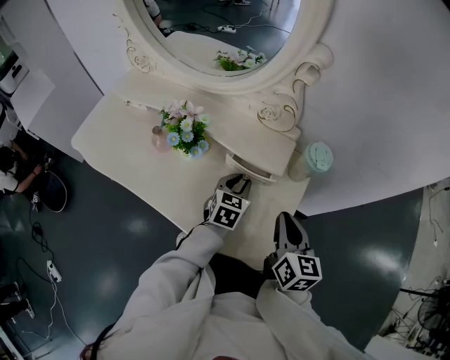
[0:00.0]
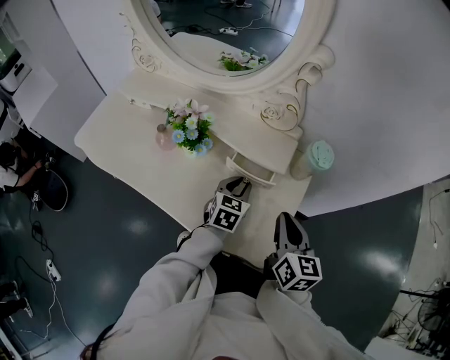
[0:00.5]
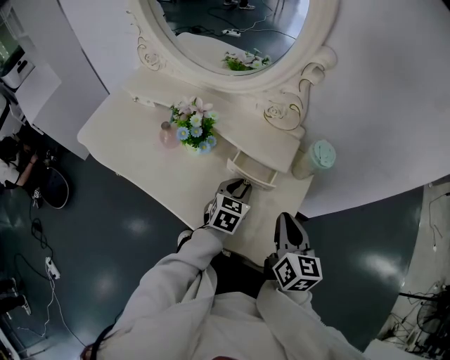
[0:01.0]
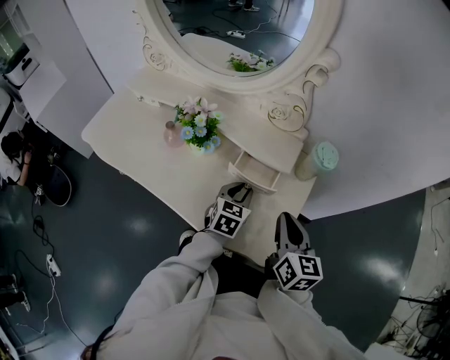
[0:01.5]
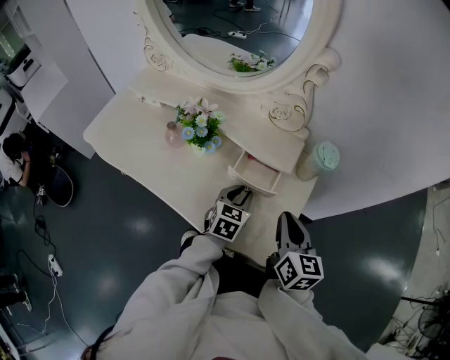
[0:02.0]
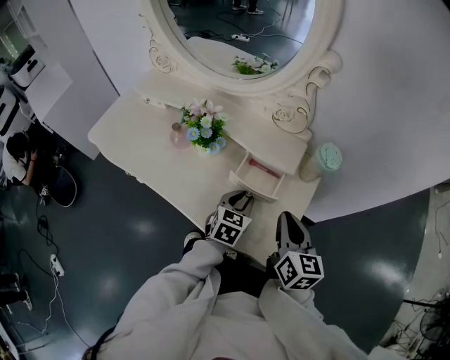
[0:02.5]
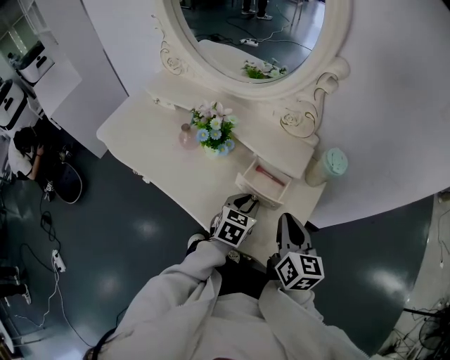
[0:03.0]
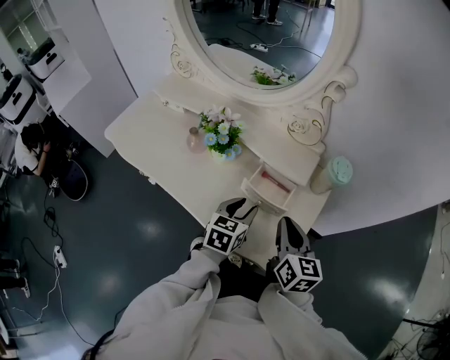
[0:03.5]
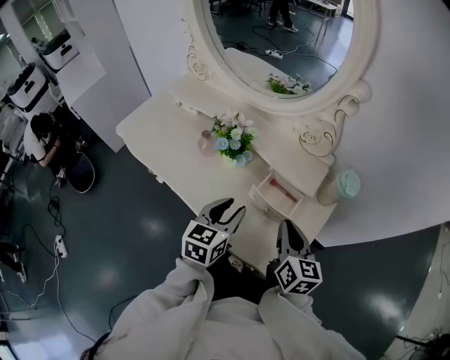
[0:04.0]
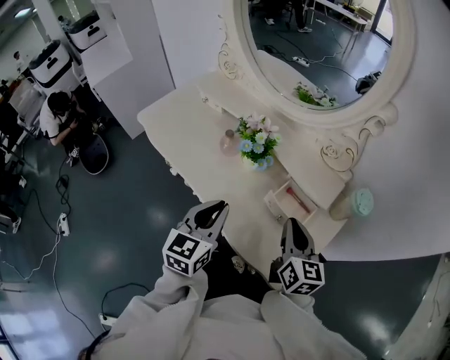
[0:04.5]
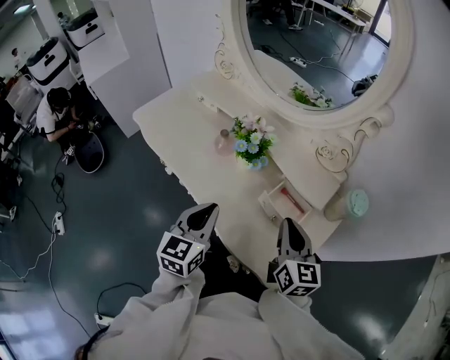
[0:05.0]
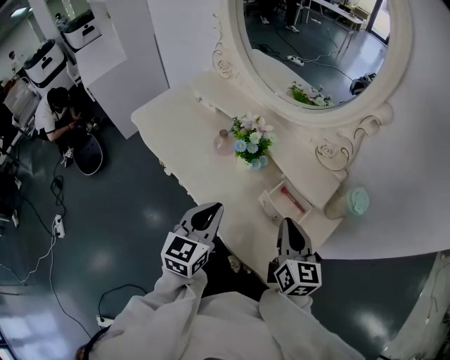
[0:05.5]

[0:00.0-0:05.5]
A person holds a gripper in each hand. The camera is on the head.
0:00.0 to 0:02.0: The left gripper goes some 5 cm backward.
0:02.0 to 0:03.5: The left gripper shifts by about 5 cm.
0:03.5 to 0:05.5: The right gripper travels to the left by approximately 5 cm; the left gripper goes approximately 15 cm to the left and upward, turns by some 30 degrees, and closes.

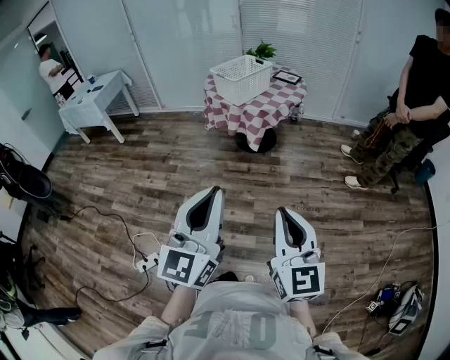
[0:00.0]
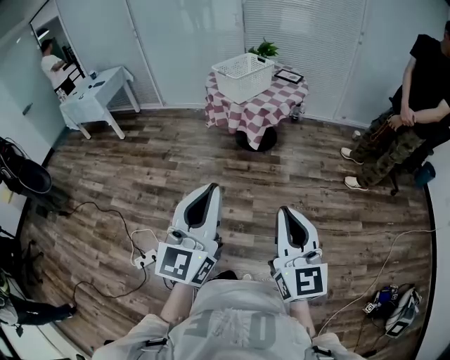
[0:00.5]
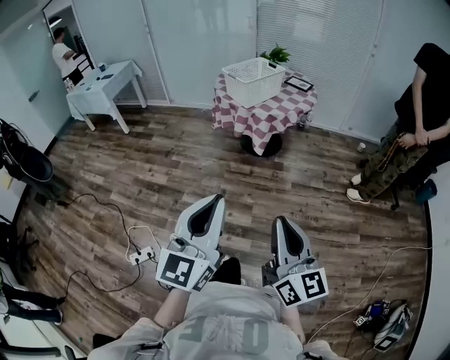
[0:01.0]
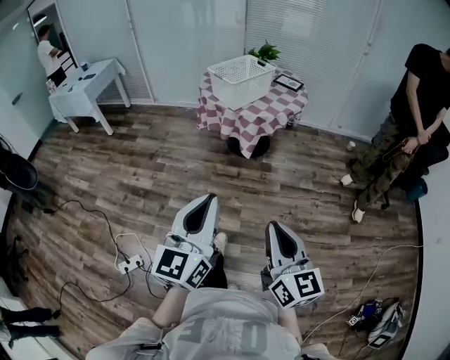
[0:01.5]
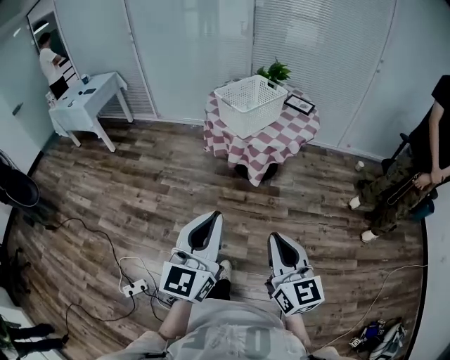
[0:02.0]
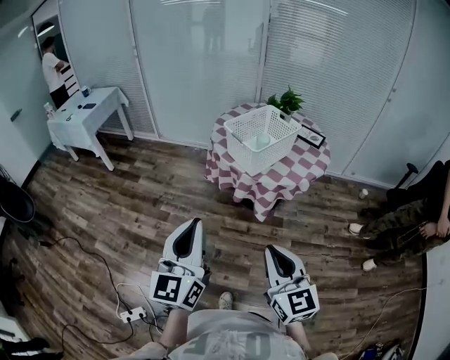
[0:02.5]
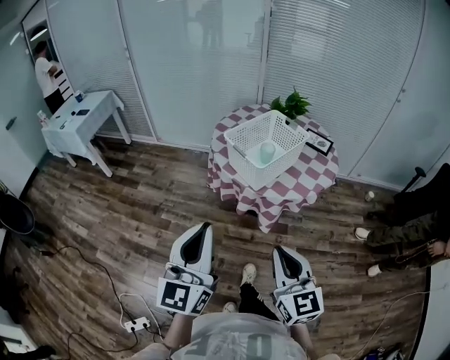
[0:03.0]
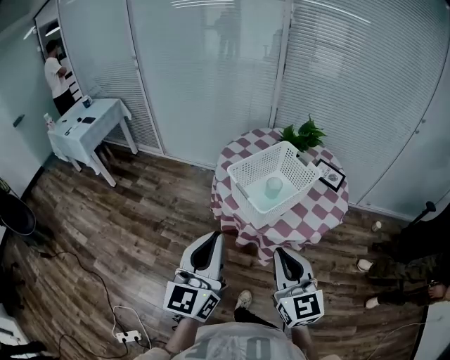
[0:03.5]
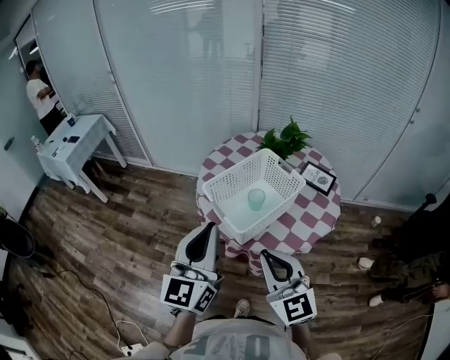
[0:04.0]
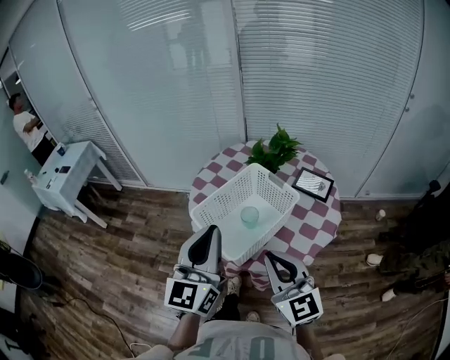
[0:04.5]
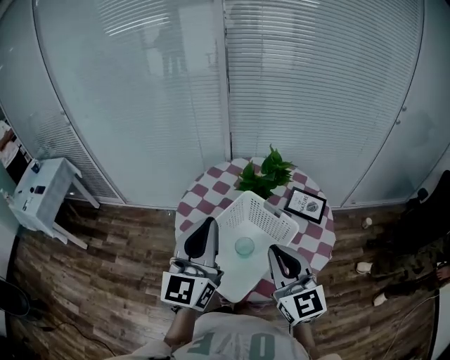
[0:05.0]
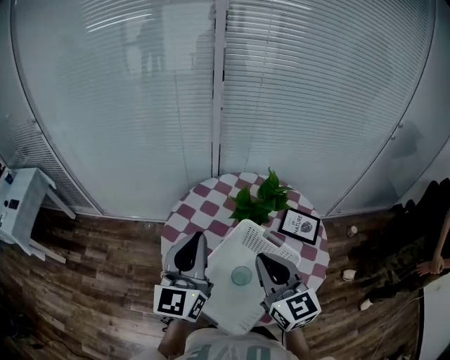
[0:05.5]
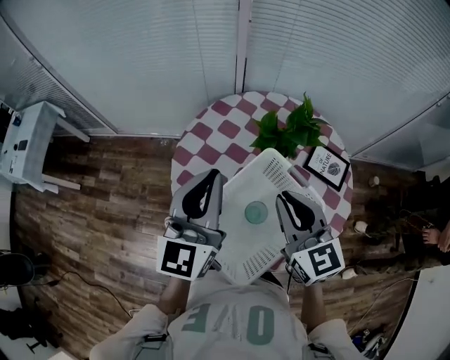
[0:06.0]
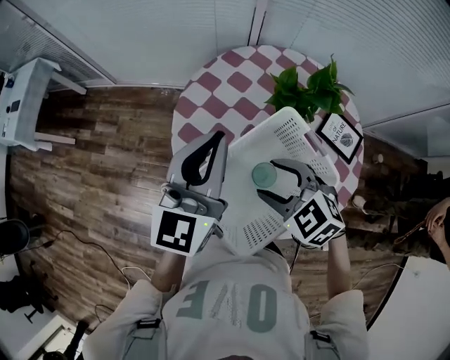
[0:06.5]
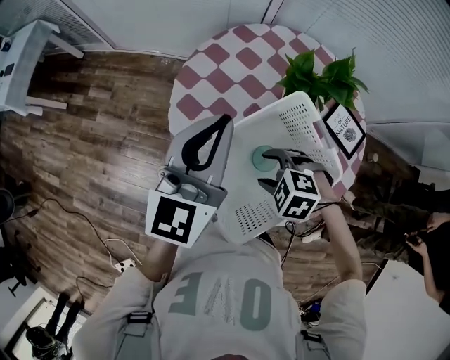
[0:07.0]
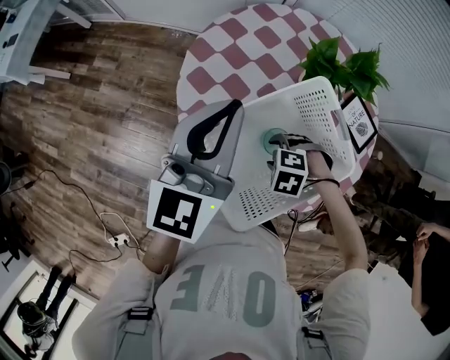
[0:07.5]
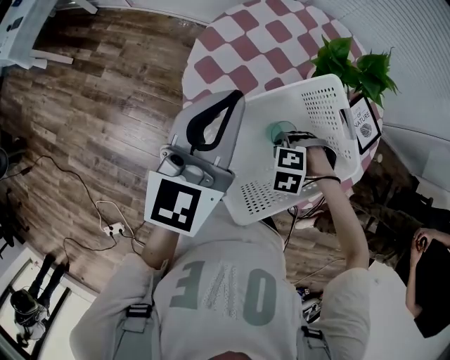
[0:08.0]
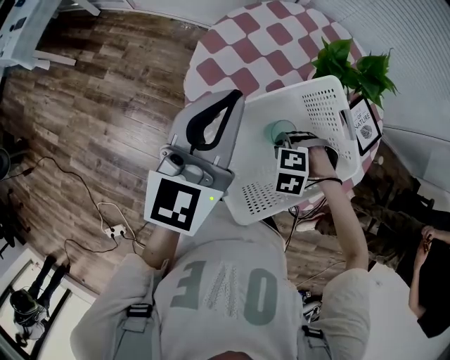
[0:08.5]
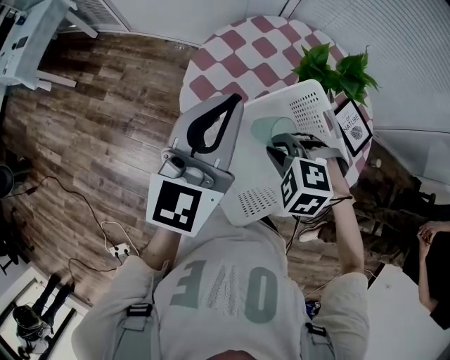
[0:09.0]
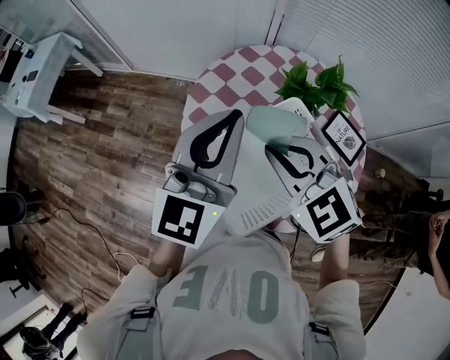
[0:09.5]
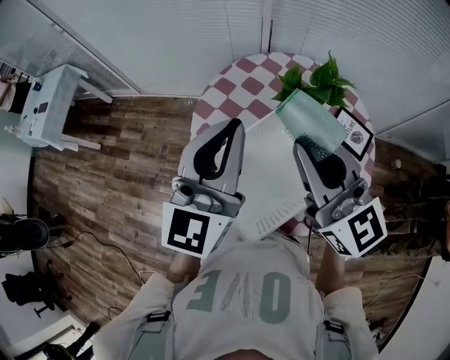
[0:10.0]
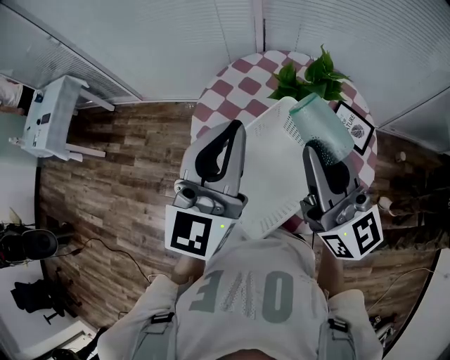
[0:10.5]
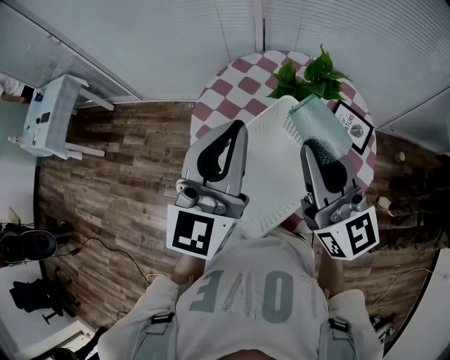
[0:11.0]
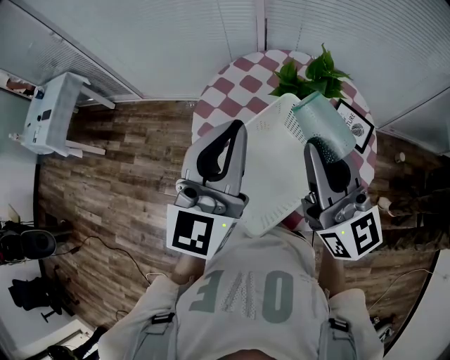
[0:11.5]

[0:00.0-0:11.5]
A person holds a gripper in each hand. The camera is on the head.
0:00.0 to 0:02.0: The grippers both shift forward by roughly 25 cm.
0:02.0 to 0:04.0: The pair of grippers is taken forward, some 50 cm. The right gripper rotates approximately 20 degrees.
0:04.0 to 0:06.0: Both grippers move forward, roughly 40 cm.
0:06.0 to 0:07.5: The right gripper is displaced downward by approximately 30 cm, angles its fingers downward, by about 70 degrees, and opens. The left gripper shifts some 5 cm downward.
0:07.5 to 0:09.5: The left gripper travels upward by some 10 cm; the right gripper goes some 30 cm upward, tips its fingers upward by roughly 50 degrees, and closes up.
0:09.5 to 0:11.5: The right gripper goes some 10 cm to the right and upward, and tilts its fingers roughly 40 degrees upward.

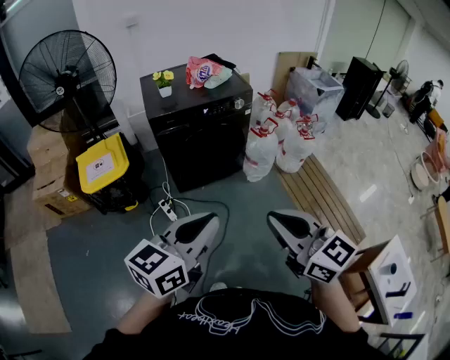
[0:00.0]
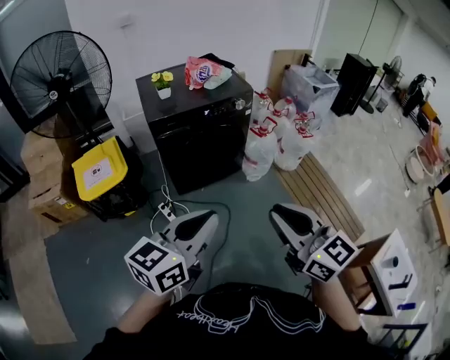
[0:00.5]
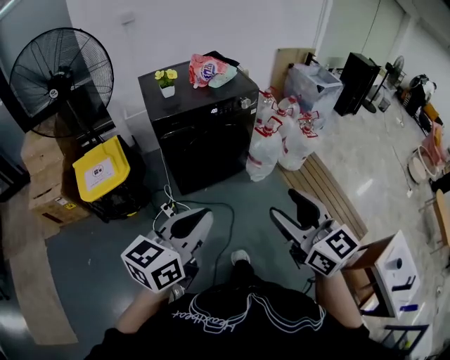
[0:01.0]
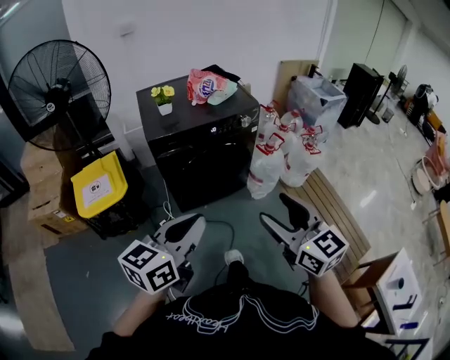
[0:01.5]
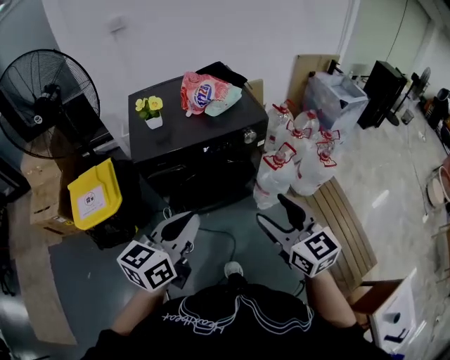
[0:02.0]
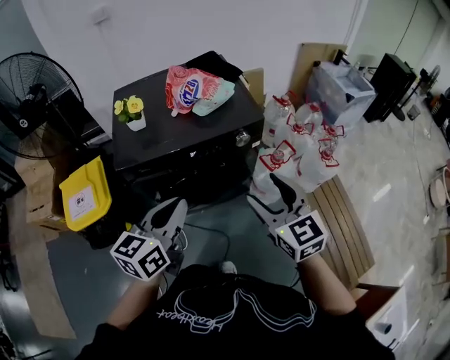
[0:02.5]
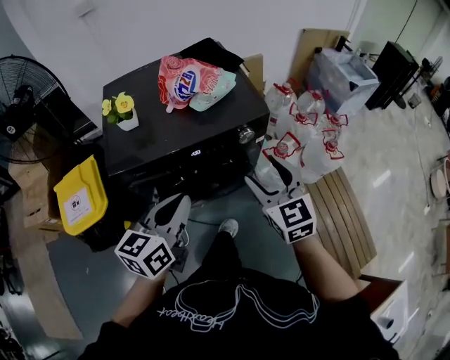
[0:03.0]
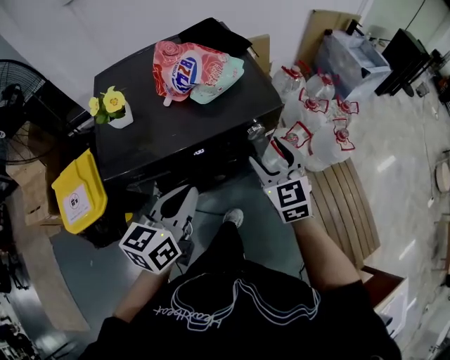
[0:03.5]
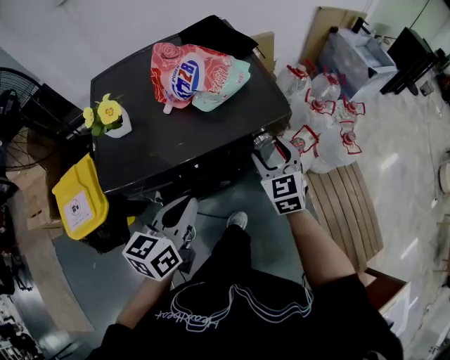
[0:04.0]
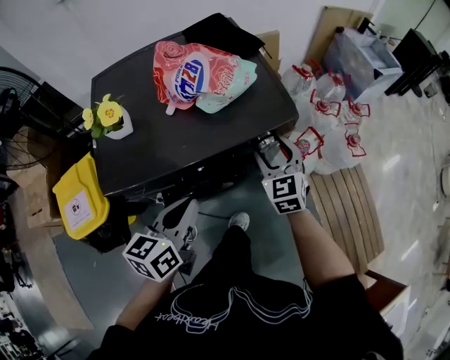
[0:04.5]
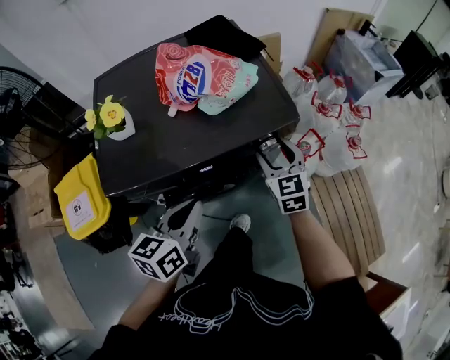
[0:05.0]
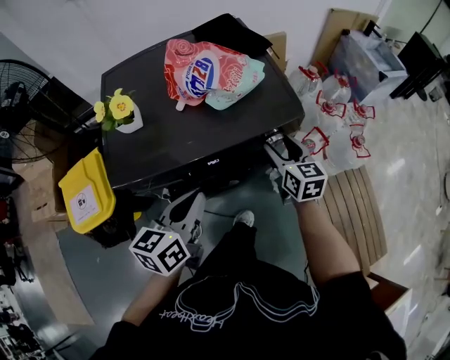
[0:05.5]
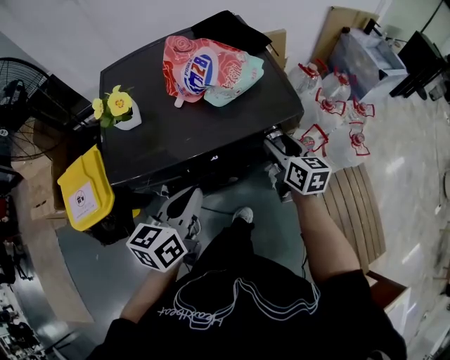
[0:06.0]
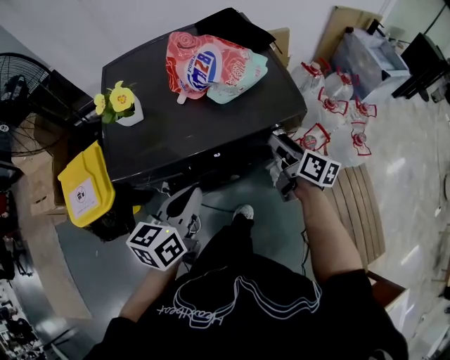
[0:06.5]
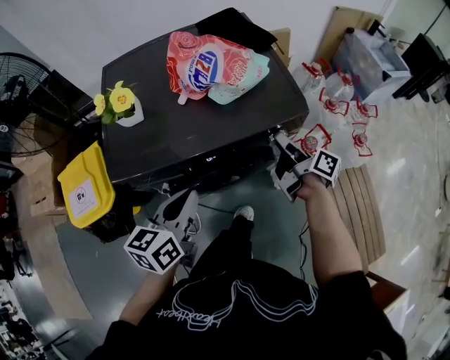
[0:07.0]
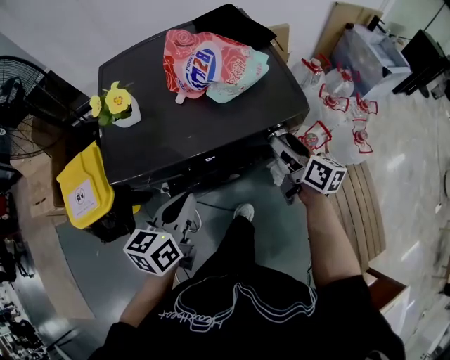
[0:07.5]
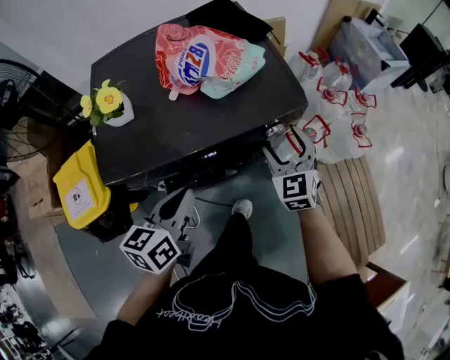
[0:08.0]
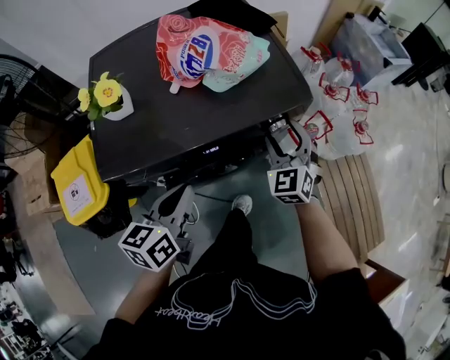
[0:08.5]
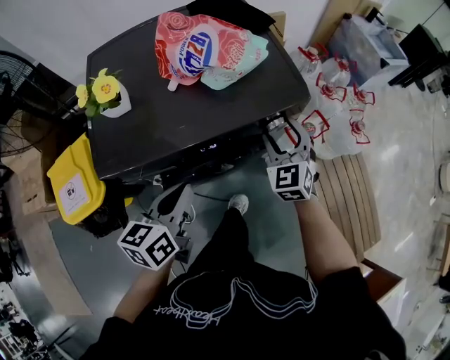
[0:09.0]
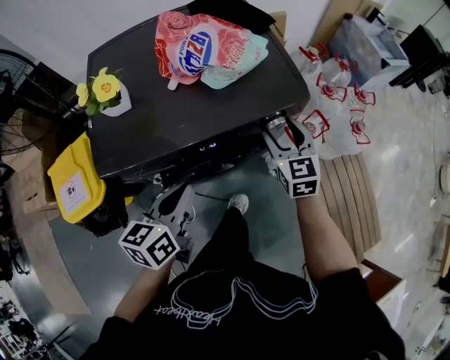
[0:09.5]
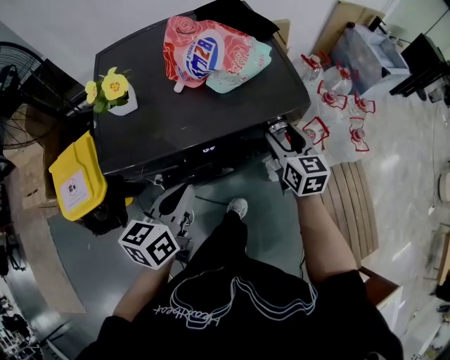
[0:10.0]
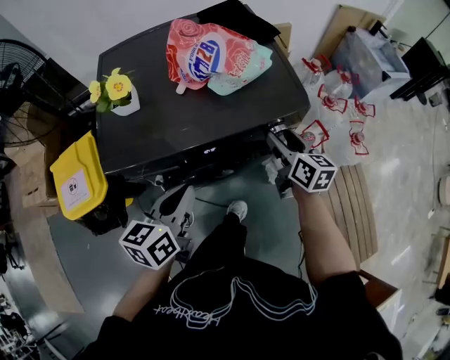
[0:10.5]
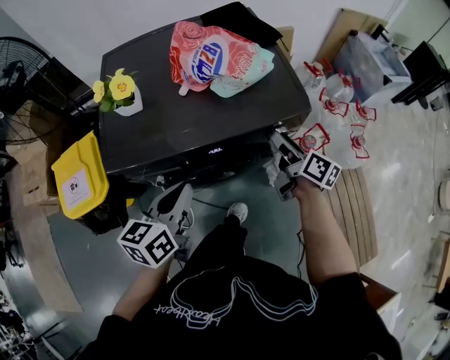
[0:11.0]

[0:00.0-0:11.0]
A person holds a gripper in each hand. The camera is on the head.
0:00.0 to 0:02.0: The two grippers go approximately 35 cm forward. The right gripper opens.
0:02.0 to 0:03.5: Both grippers move forward and downward, roughly 30 cm. The right gripper rotates some 20 degrees.
0:03.5 to 0:05.5: The right gripper shifts roughly 10 cm forward and downward, and swivels about 30 degrees. The left gripper changes place by roughly 5 cm.
0:05.5 to 0:07.5: The right gripper rotates about 30 degrees.
0:07.5 to 0:09.0: The right gripper rolls counterclockwise, seen from behind, by about 70 degrees.
0:09.0 to 0:11.0: The right gripper rotates around the line of its fingers by about 80 degrees, clockwise from behind.
